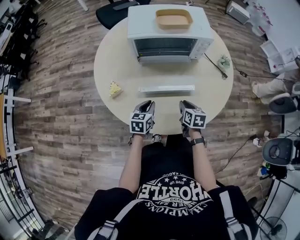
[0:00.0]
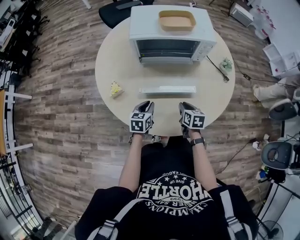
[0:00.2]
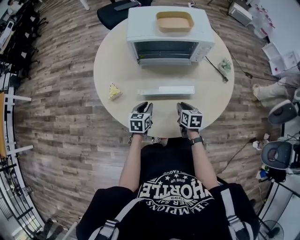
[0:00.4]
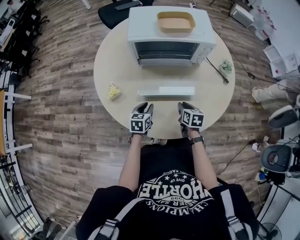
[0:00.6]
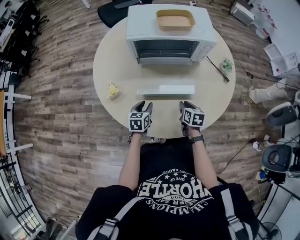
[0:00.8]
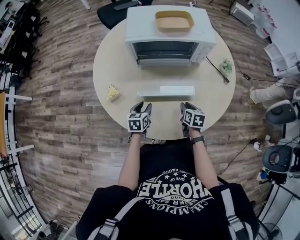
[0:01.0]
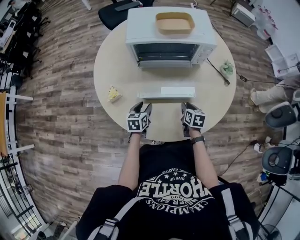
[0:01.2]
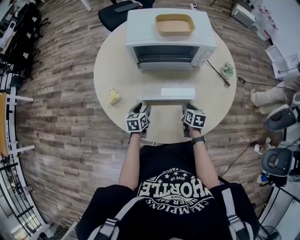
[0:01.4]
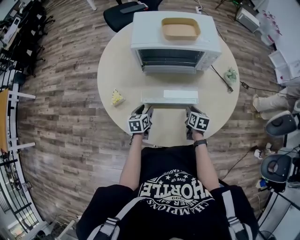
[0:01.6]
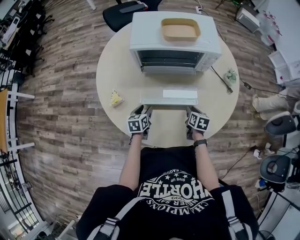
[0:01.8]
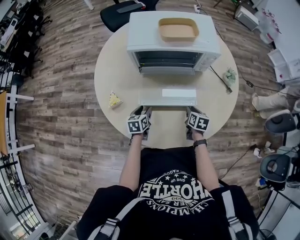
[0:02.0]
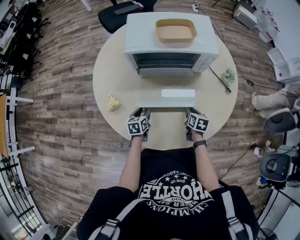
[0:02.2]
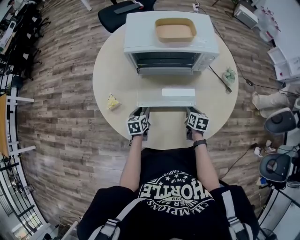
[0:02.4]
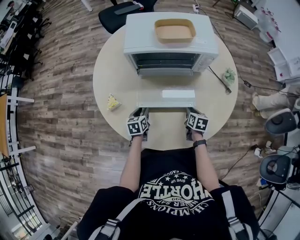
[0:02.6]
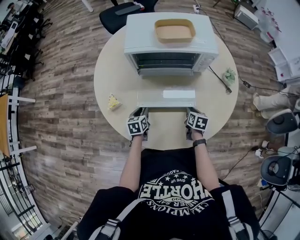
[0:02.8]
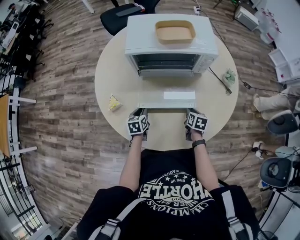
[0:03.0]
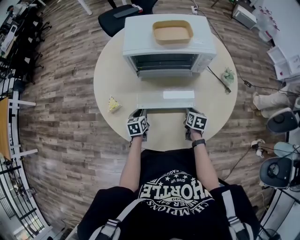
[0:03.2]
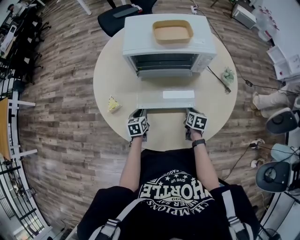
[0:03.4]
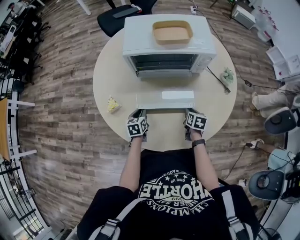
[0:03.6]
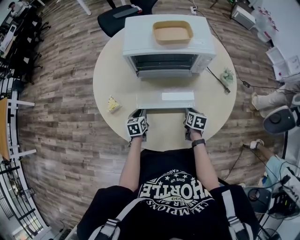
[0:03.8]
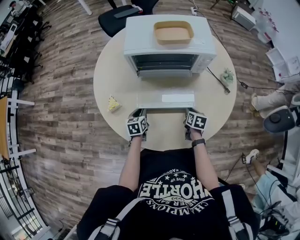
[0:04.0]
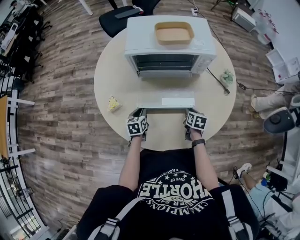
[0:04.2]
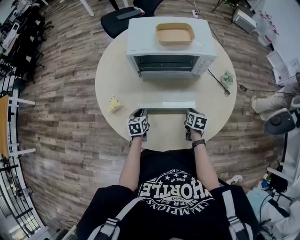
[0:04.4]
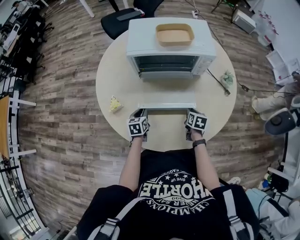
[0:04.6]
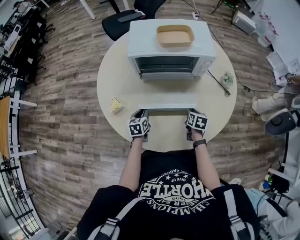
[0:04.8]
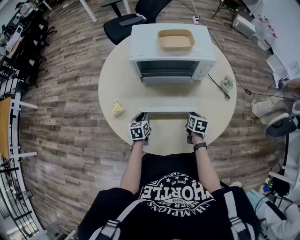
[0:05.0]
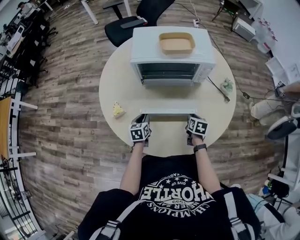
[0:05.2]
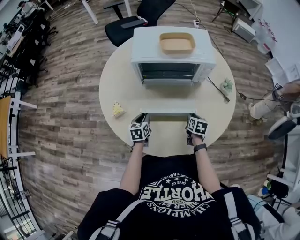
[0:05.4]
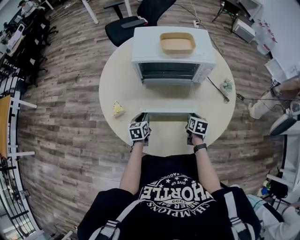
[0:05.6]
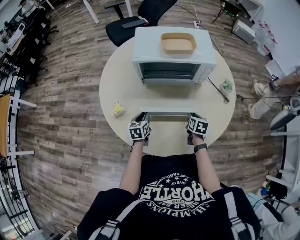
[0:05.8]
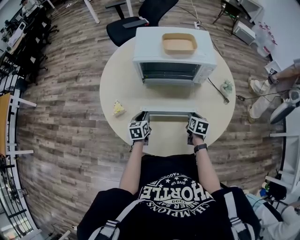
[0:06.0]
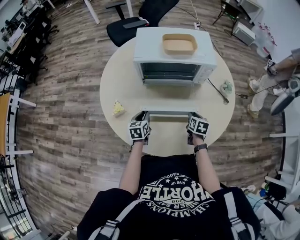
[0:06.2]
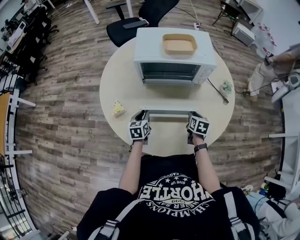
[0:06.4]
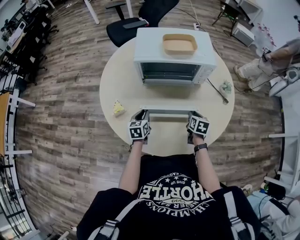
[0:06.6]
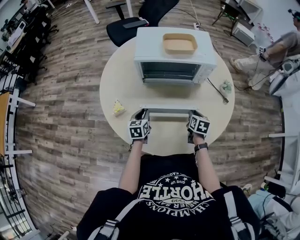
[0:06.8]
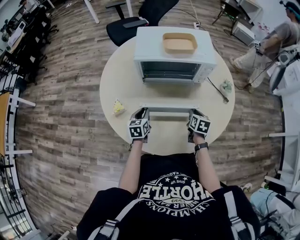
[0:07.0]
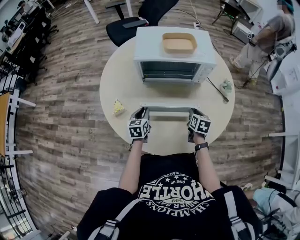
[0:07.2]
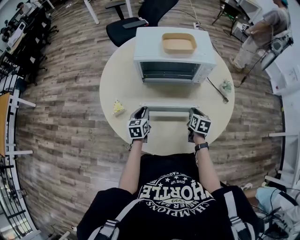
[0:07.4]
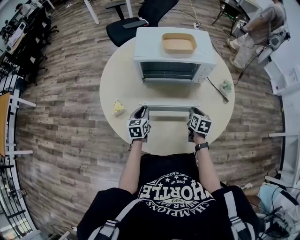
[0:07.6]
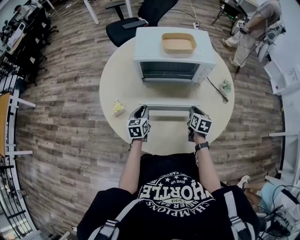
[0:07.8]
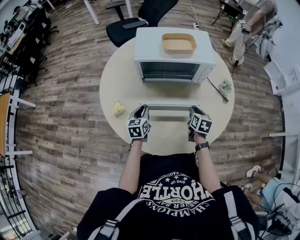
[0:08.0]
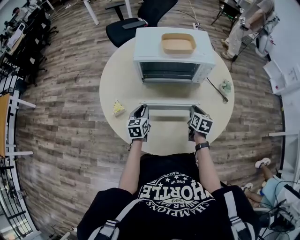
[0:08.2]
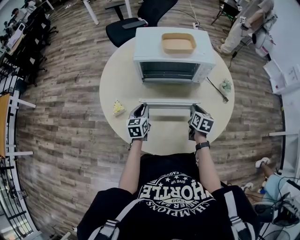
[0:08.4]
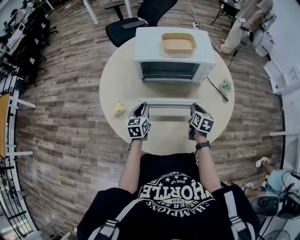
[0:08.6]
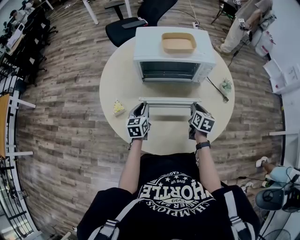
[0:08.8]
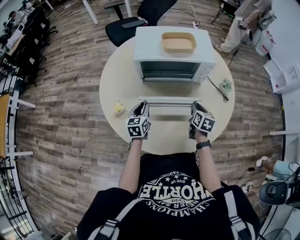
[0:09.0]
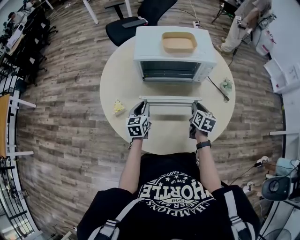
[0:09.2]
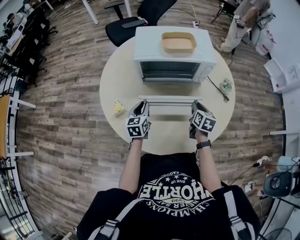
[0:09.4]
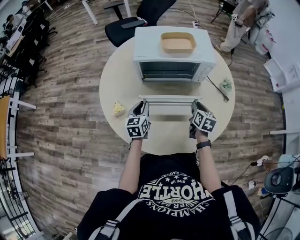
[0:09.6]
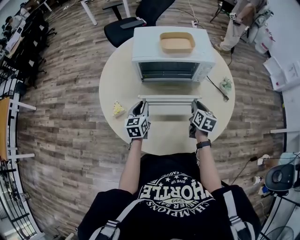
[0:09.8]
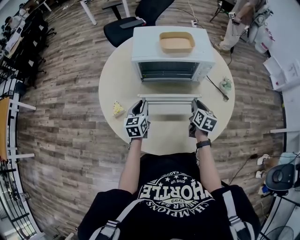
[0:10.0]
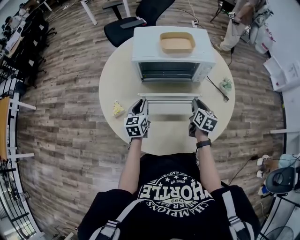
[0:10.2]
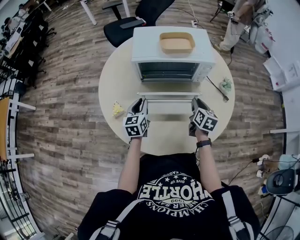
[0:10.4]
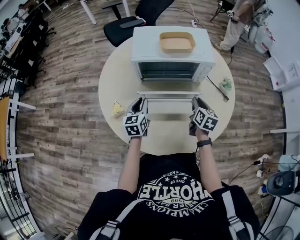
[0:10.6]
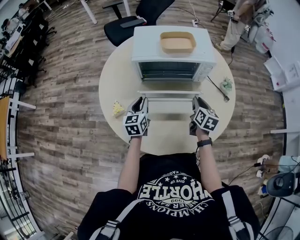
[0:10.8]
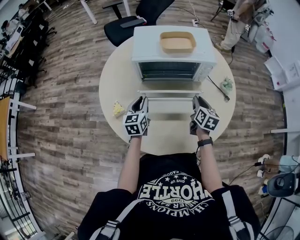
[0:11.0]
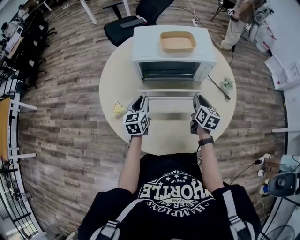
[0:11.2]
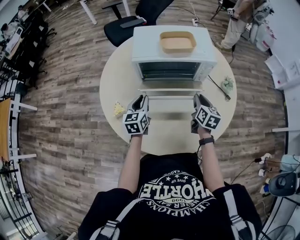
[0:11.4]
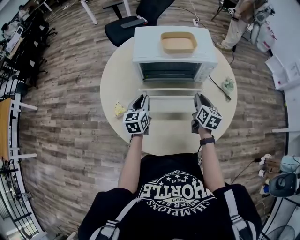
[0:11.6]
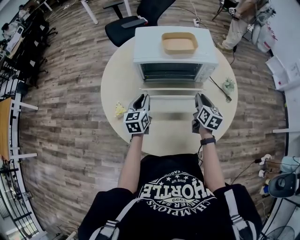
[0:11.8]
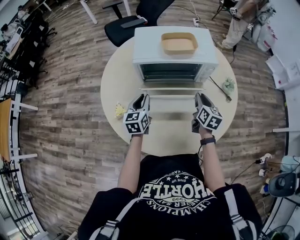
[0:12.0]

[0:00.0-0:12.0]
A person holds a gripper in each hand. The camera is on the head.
0:00.0 to 0:01.6: The left gripper travels downward and forward by some 10 cm, and opens its fingers, while the right gripper goes roughly 10 cm downward, forward and to the right.
0:01.6 to 0:03.0: The left gripper closes.
0:03.0 to 0:04.4: Both grippers stay about where they are.
0:04.4 to 0:06.0: The grippers stay close to where they were, moving slightly.
0:06.0 to 0:07.6: There are only small adjustments of the grippers.
0:07.6 to 0:09.0: The grippers move only a little.
0:09.0 to 0:10.4: The grippers stay close to where they were, moving slightly.
0:10.4 to 0:12.0: There are only small adjustments of the grippers.

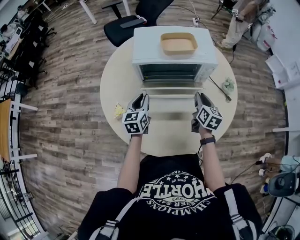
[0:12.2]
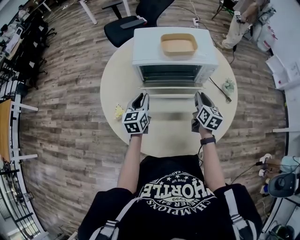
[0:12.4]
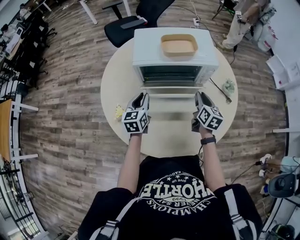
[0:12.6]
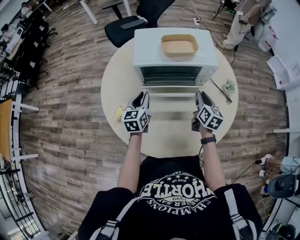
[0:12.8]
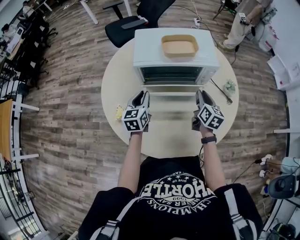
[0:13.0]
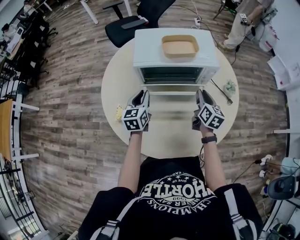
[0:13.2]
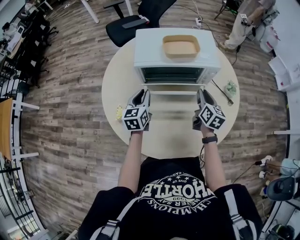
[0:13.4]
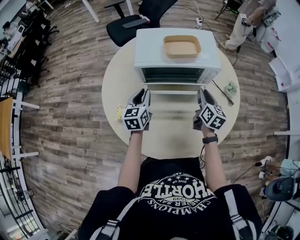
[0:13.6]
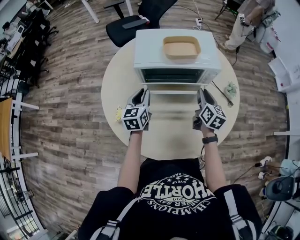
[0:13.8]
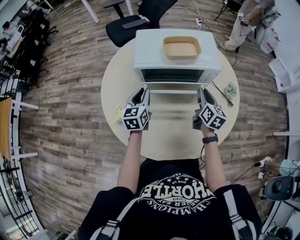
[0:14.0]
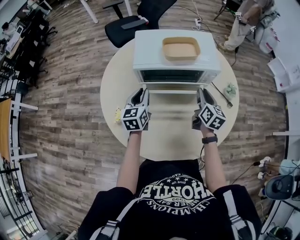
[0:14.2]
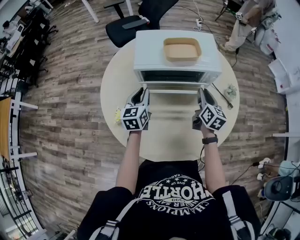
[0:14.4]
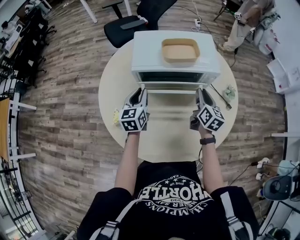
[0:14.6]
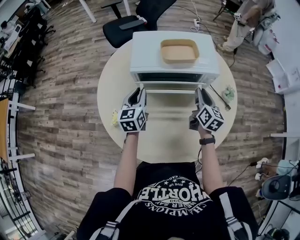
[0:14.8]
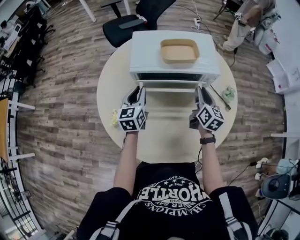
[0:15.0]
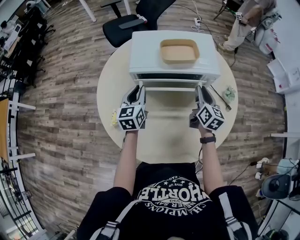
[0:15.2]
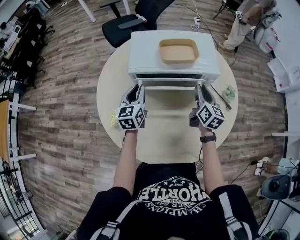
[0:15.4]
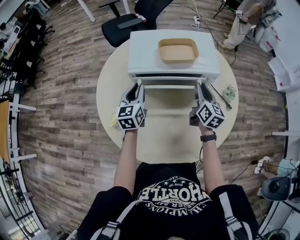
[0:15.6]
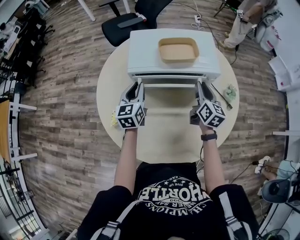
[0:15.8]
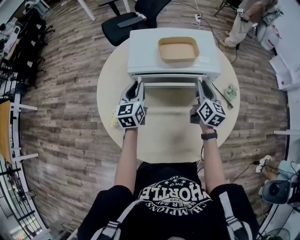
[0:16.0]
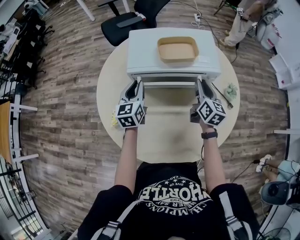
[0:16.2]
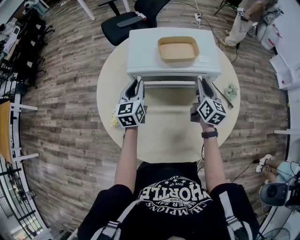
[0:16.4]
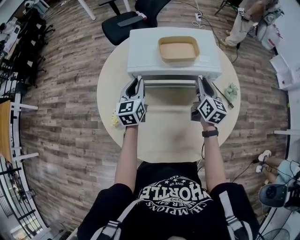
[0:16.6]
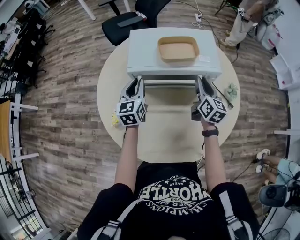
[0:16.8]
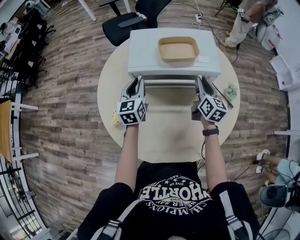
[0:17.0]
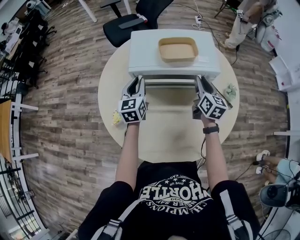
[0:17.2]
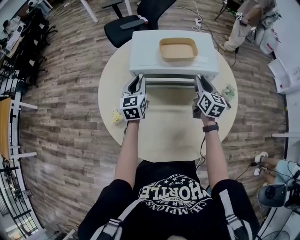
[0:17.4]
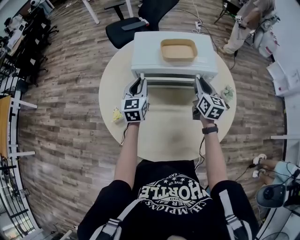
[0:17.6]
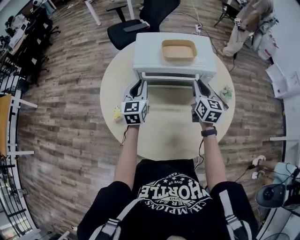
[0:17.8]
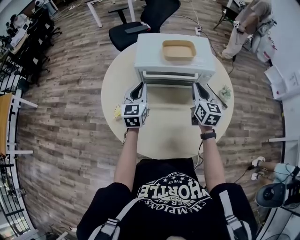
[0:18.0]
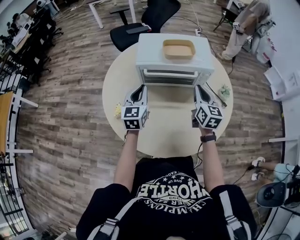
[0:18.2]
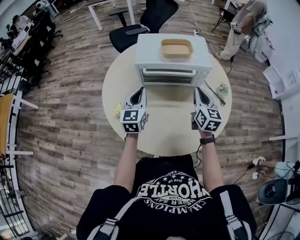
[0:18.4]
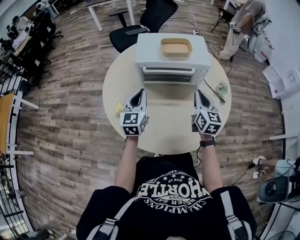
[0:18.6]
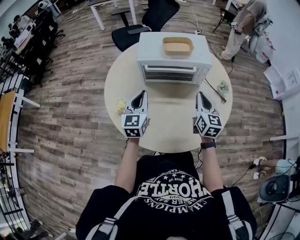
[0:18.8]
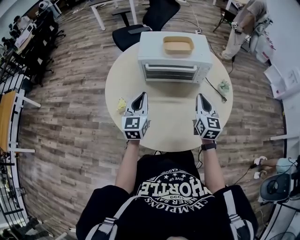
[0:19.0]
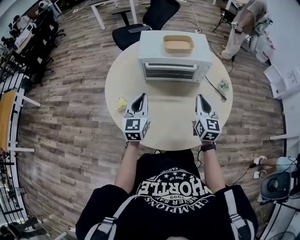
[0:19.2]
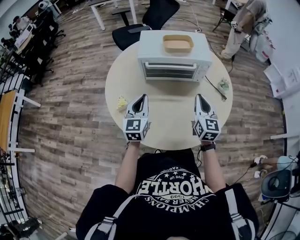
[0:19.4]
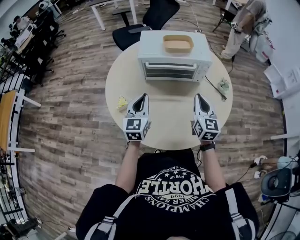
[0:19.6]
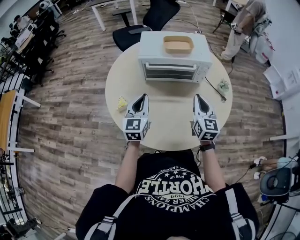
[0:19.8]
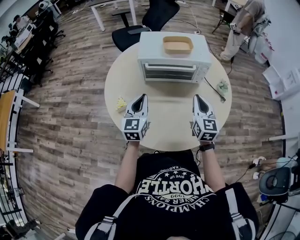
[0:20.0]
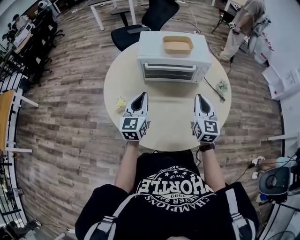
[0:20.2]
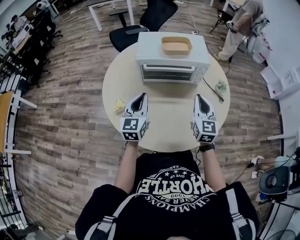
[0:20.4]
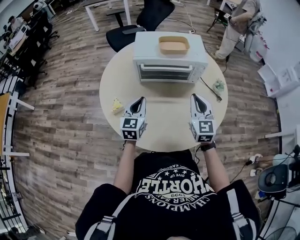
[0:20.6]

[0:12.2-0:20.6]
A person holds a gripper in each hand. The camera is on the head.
0:12.2 to 0:13.6: The grippers move only a little.
0:13.6 to 0:15.0: The grippers make only small movements.
0:15.0 to 0:16.4: The grippers make only small movements.
0:16.4 to 0:17.8: The left gripper shifts by roughly 5 cm. The right gripper changes place by about 5 cm.
0:17.8 to 0:19.2: Both grippers move backward, about 15 cm.
0:19.2 to 0:20.6: The grippers move only a little.

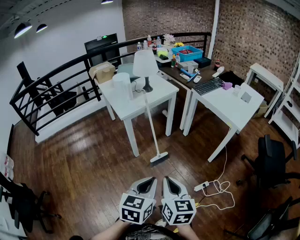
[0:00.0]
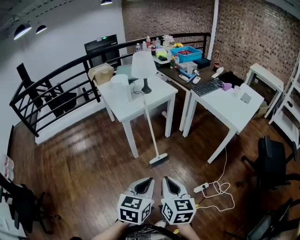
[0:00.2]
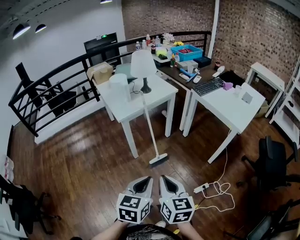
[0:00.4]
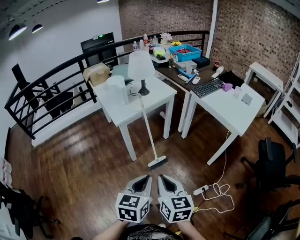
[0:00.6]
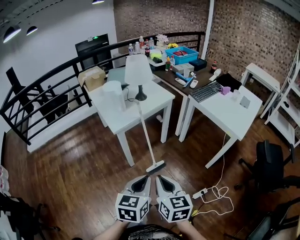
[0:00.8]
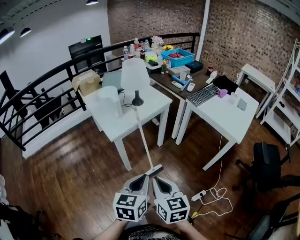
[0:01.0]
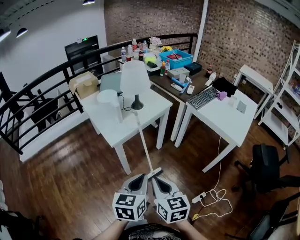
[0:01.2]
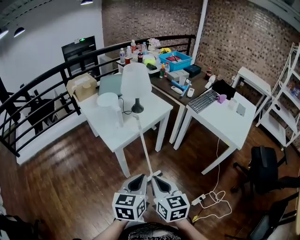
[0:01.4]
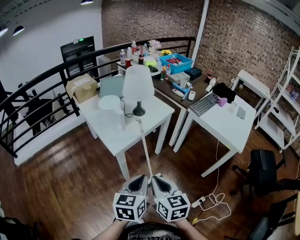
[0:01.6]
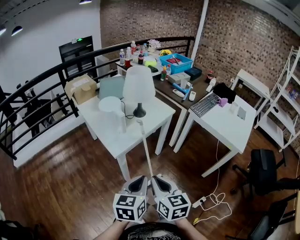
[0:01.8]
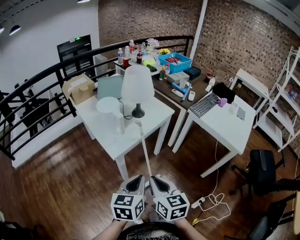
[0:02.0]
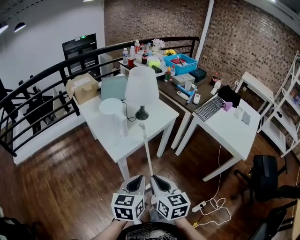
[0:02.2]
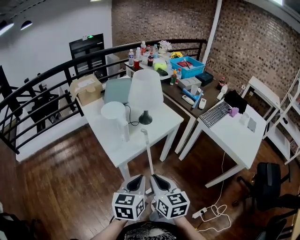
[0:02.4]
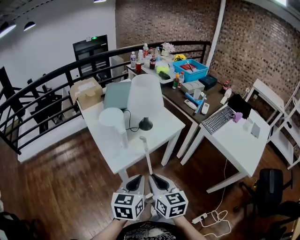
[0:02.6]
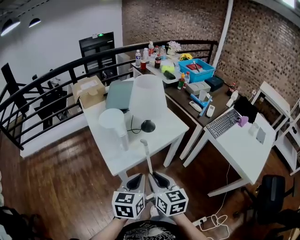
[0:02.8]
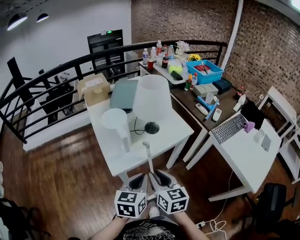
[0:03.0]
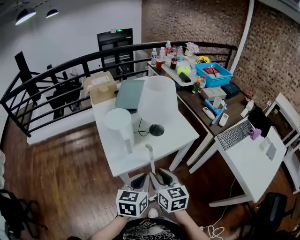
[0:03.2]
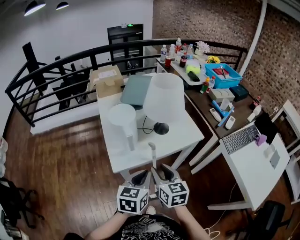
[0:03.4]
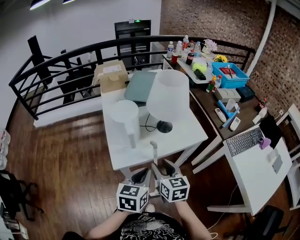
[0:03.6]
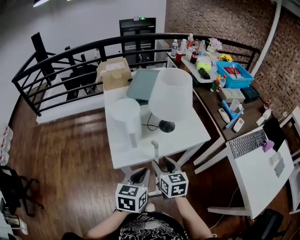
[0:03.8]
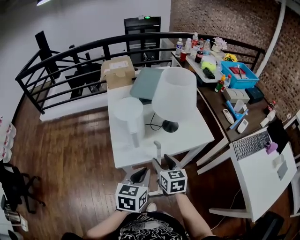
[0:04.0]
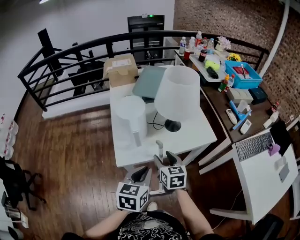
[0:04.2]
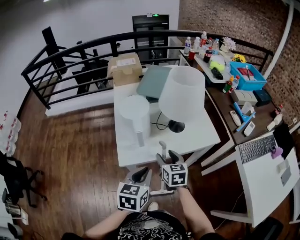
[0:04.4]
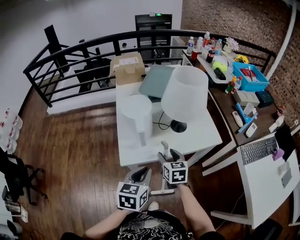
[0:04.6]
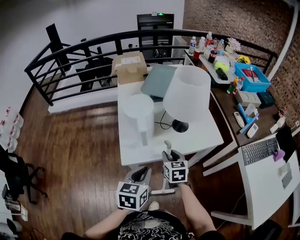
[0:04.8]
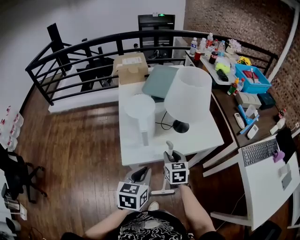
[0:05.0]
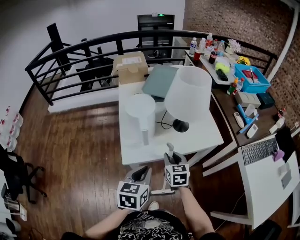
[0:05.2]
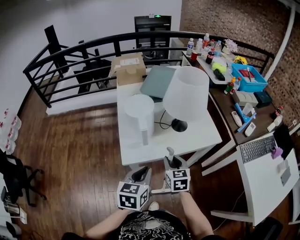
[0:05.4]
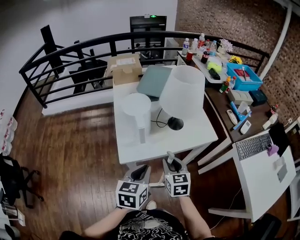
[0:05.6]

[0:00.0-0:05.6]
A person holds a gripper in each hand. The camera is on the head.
0:00.0 to 0:01.4: The right gripper is displaced forward and to the left by roughly 25 cm. The left gripper heads forward, covering about 25 cm.
0:01.4 to 0:02.8: Both grippers move forward, roughly 20 cm.
0:02.8 to 0:04.2: The left gripper travels forward and downward by about 10 cm, while the right gripper goes about 20 cm forward and downward, and opens.
0:04.2 to 0:05.6: The right gripper closes up.
